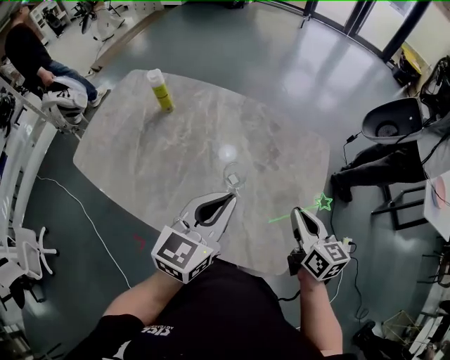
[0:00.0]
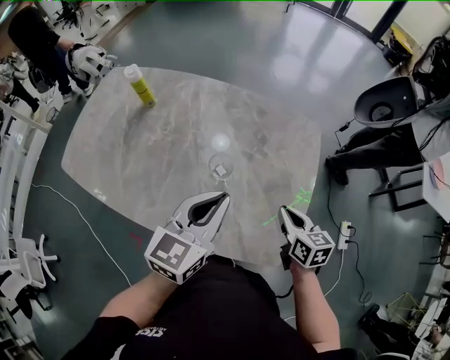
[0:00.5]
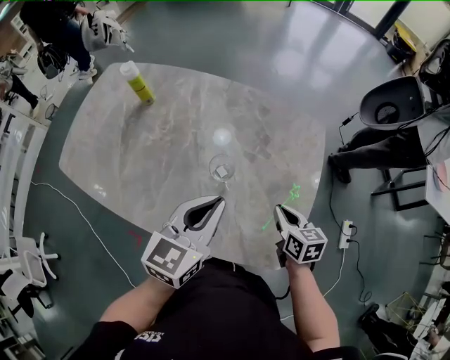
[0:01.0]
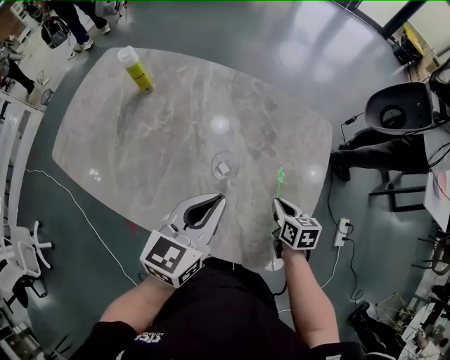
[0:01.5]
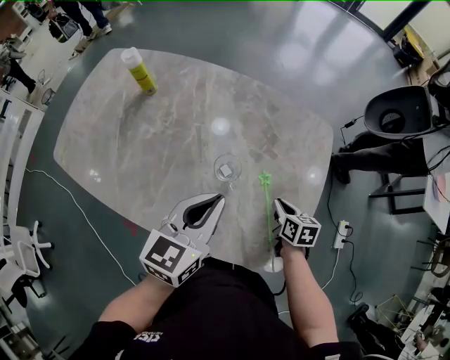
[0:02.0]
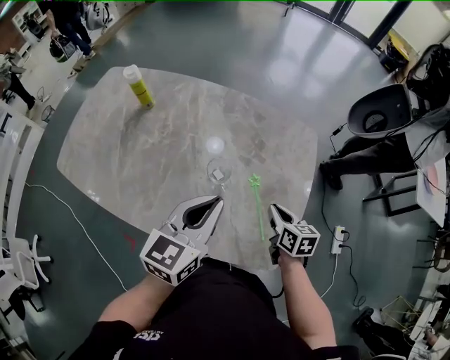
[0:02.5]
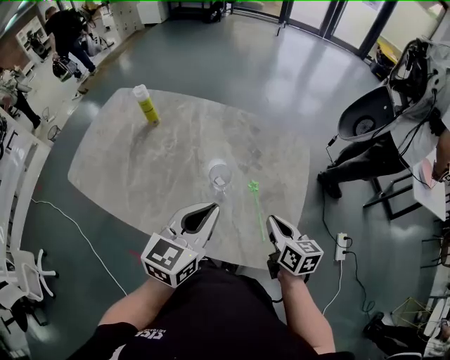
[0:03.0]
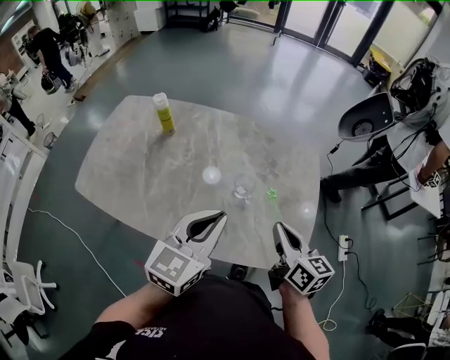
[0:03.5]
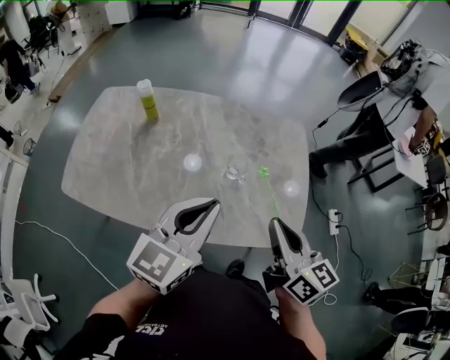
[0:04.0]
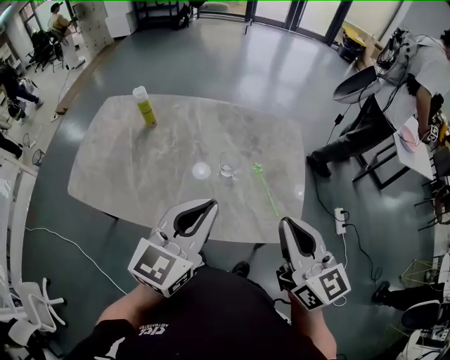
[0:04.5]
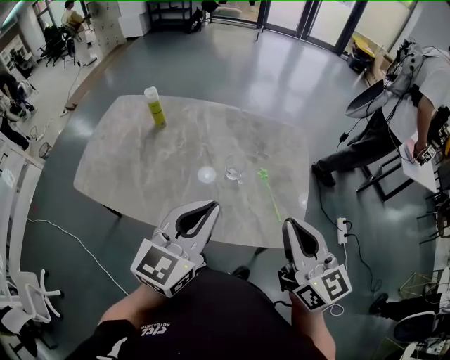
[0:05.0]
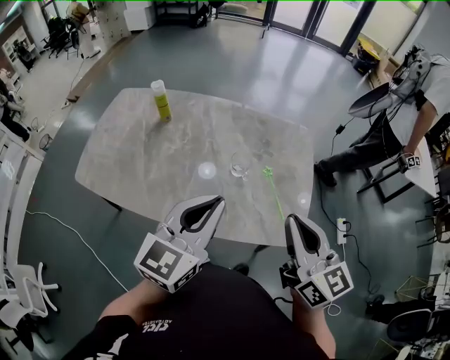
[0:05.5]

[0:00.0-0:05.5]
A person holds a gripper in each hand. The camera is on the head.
0:00.0 to 0:02.0: The left gripper is displaced downward by about 5 cm. Meanwhile the right gripper travels downward by roughly 20 cm, and rotates some 30 degrees.
0:02.0 to 0:03.5: The right gripper travels upward and to the left by roughly 25 cm, and tilts its fingers about 30 degrees upward; the left gripper heads upward, backward and to the left, covering roughly 15 cm.
0:03.5 to 0:05.5: The left gripper shifts about 5 cm backward; the right gripper travels upward and backward by approximately 15 cm, and turns by roughly 20 degrees.

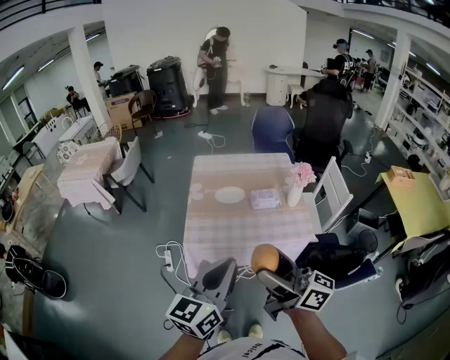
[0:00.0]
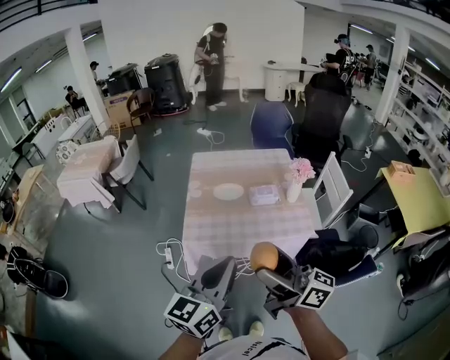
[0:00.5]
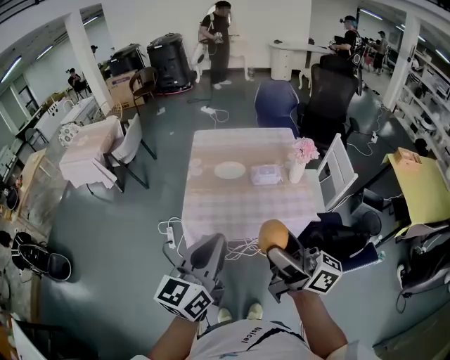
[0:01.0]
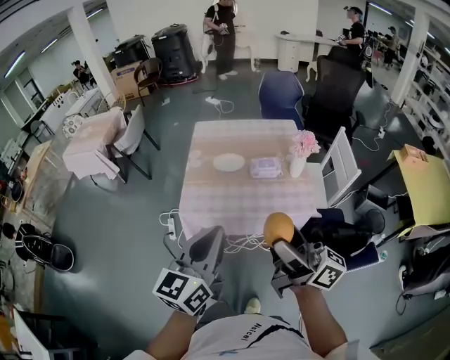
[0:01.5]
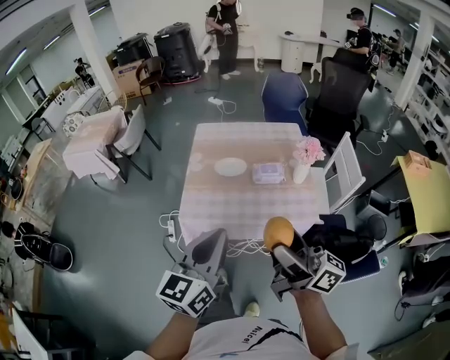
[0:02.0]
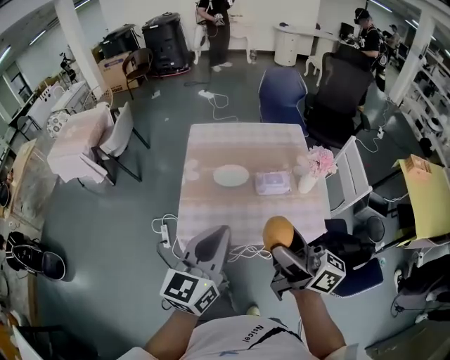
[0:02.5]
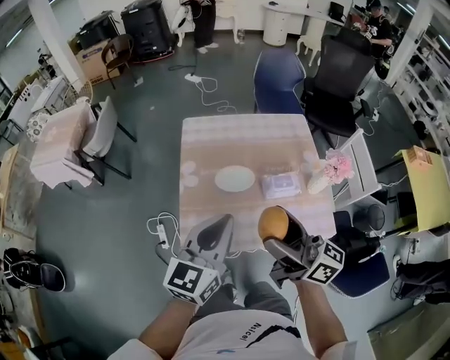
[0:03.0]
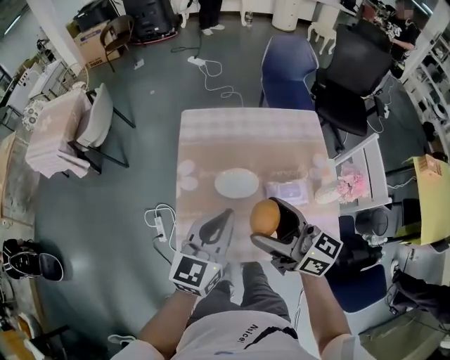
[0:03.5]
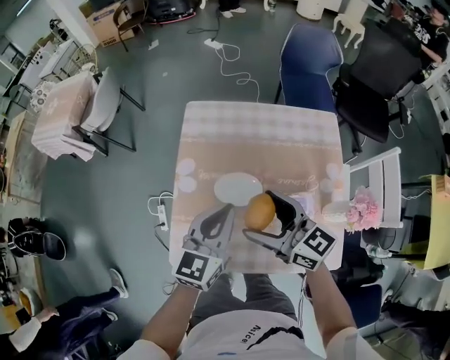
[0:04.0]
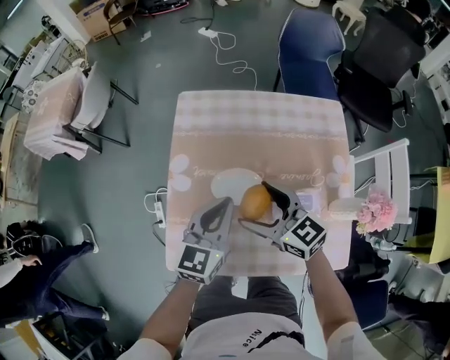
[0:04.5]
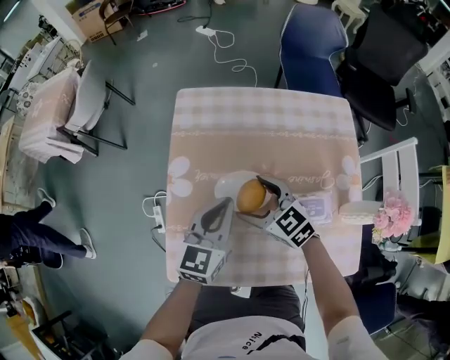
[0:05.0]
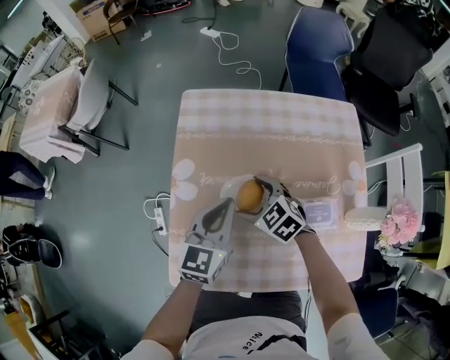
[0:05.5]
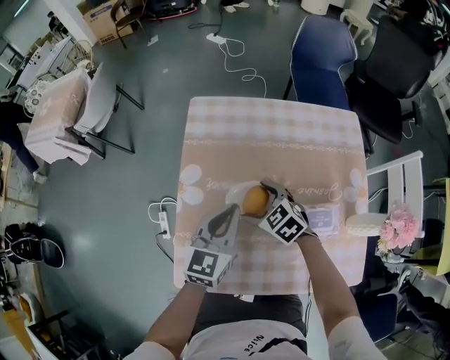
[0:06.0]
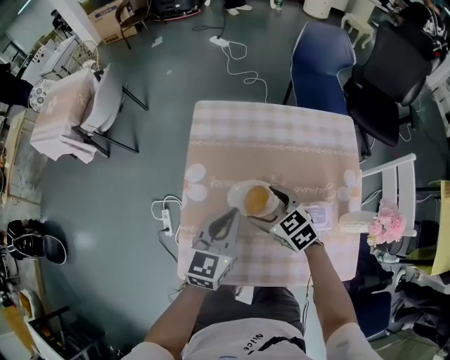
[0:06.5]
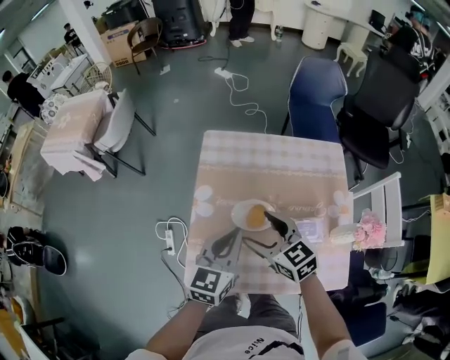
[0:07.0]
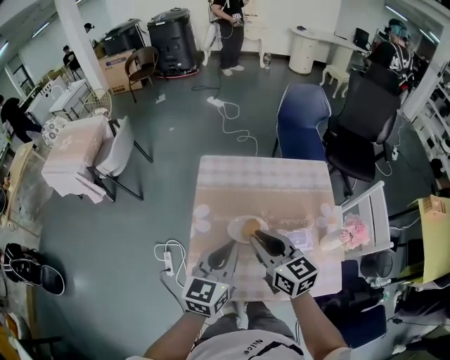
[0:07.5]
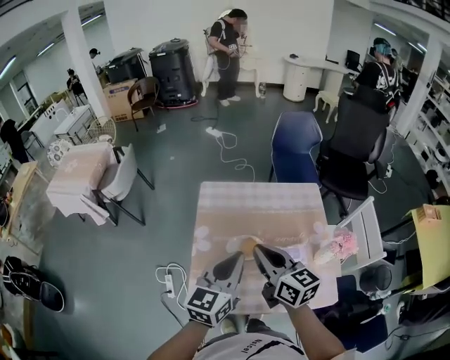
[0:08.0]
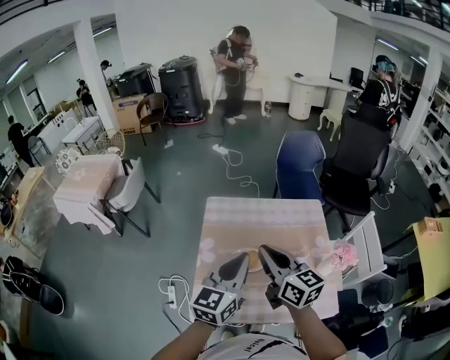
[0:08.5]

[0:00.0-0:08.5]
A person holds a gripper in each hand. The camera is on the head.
0:00.0 to 0:02.0: The right gripper is displaced to the right by some 10 cm; the left gripper moves roughly 5 cm.
0:02.0 to 0:04.0: The grippers both shift forward and downward by roughly 40 cm. The right gripper tilts its fingers roughly 30 degrees downward.
0:04.0 to 0:06.5: The right gripper moves downward, some 15 cm, and tilts its fingers approximately 30 degrees downward; the left gripper heads downward, covering about 10 cm.
0:06.5 to 0:08.5: The two grippers go roughly 25 cm upward. The right gripper angles its fingers upward, by roughly 40 degrees, and closes its fingers.

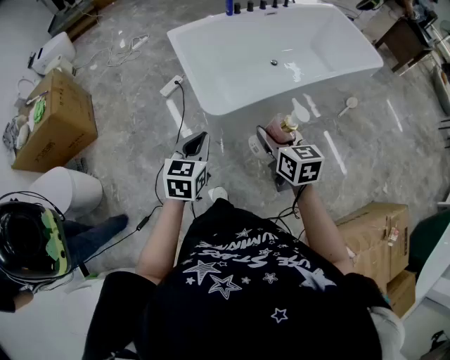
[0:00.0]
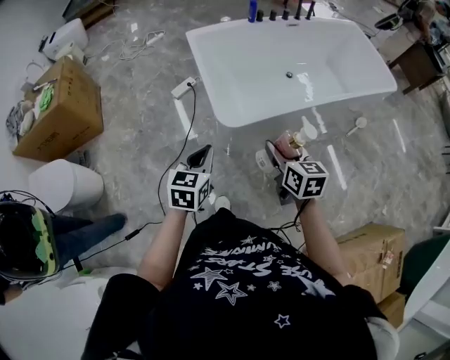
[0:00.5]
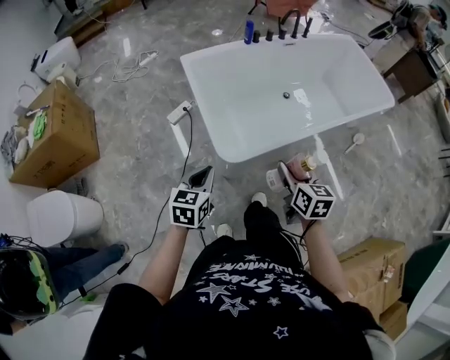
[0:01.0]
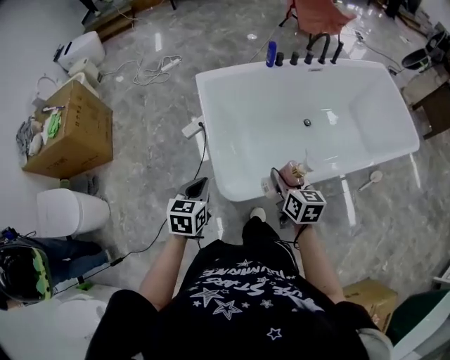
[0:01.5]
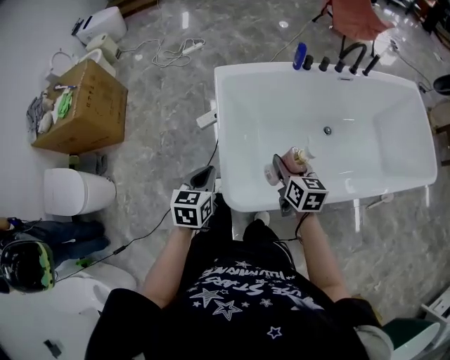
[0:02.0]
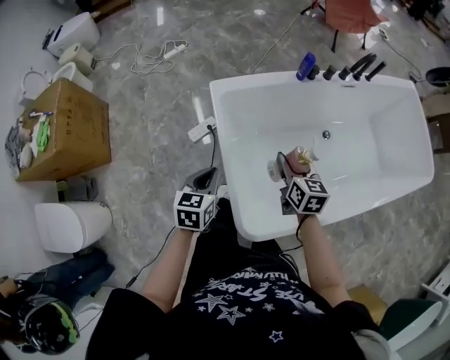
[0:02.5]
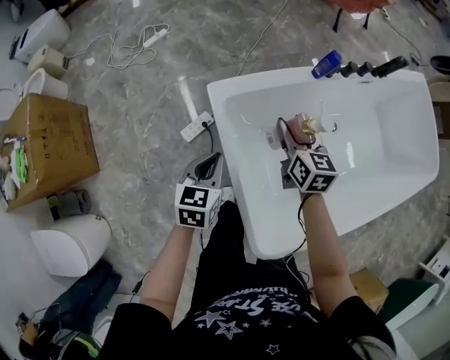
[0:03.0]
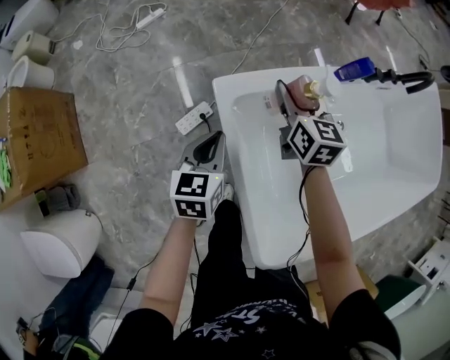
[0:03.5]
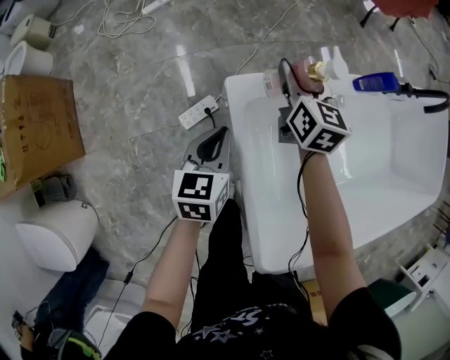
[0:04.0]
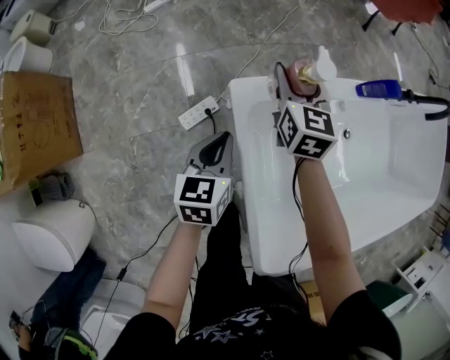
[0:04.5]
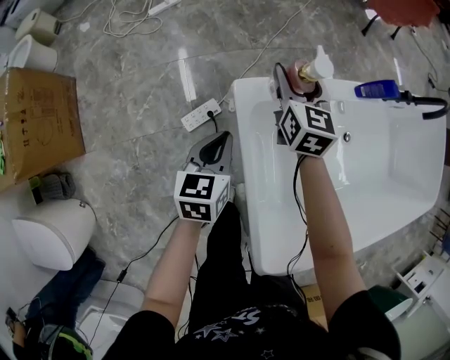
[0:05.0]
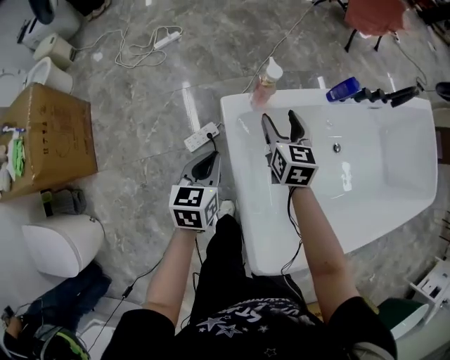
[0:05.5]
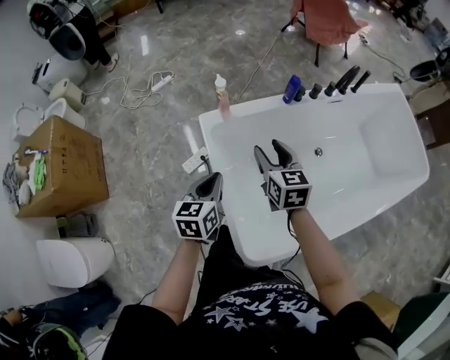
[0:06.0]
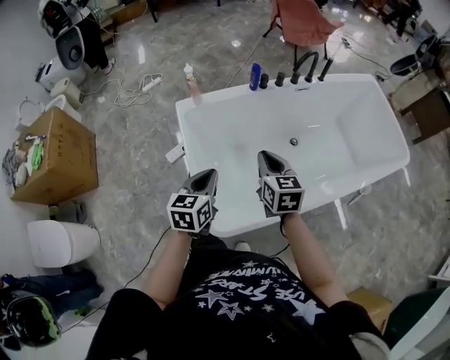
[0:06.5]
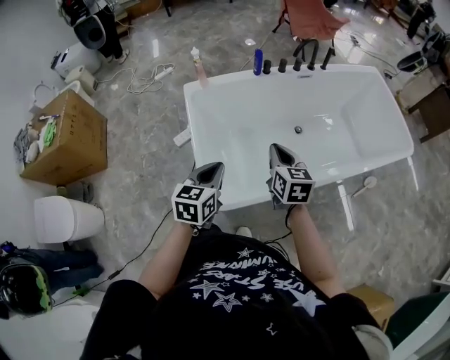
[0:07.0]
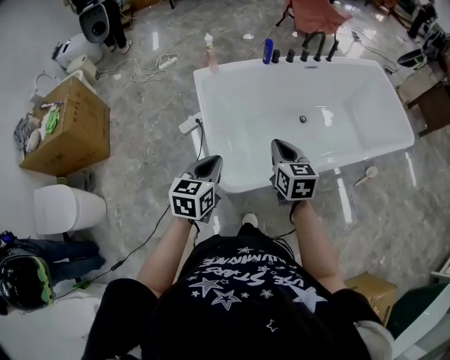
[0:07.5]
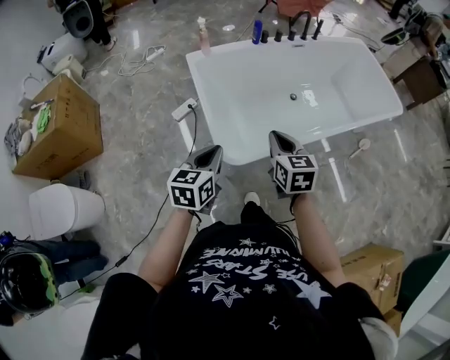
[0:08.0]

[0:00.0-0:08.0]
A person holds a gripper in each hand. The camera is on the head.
0:00.0 to 0:02.0: Both grippers travel together forward, some 40 cm. The left gripper swivels approximately 20 degrees.
0:02.0 to 0:04.0: Both grippers are carried forward and to the left, approximately 50 cm. The left gripper travels downward by about 20 cm.
0:04.0 to 0:06.0: The right gripper travels backward, upward and to the right by roughly 35 cm. Meanwhile the left gripper heads upward, backward and to the right, covering some 30 cm.
0:06.0 to 0:08.0: Both grippers are carried backward, about 40 cm. The right gripper closes its fingers.

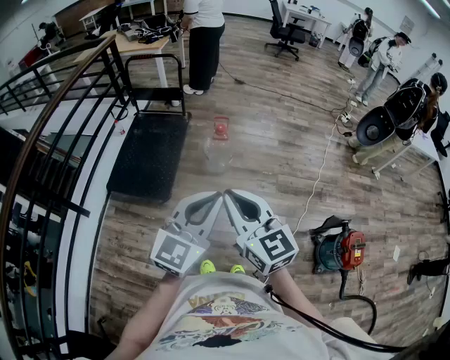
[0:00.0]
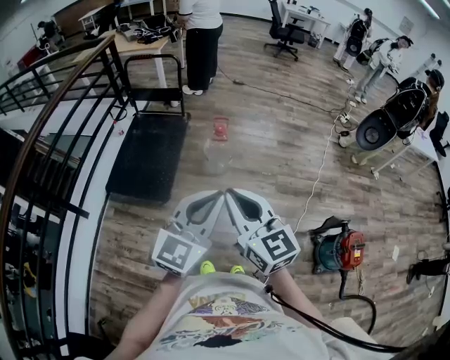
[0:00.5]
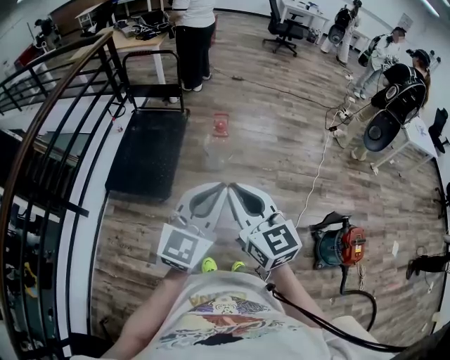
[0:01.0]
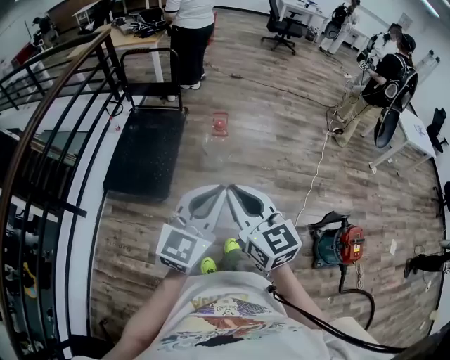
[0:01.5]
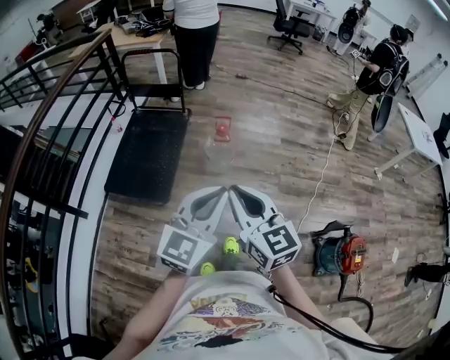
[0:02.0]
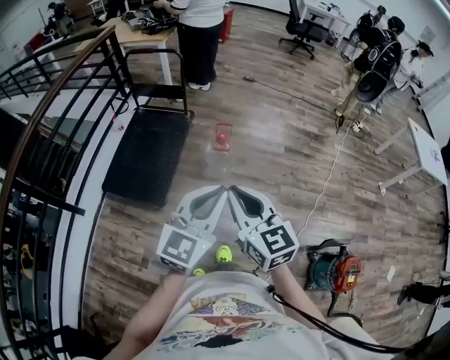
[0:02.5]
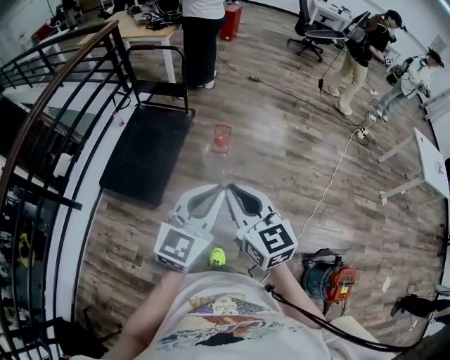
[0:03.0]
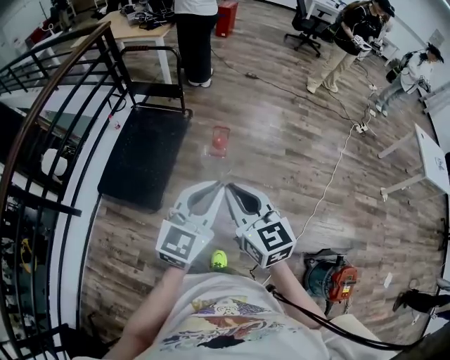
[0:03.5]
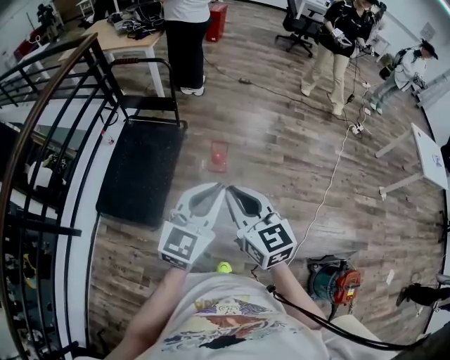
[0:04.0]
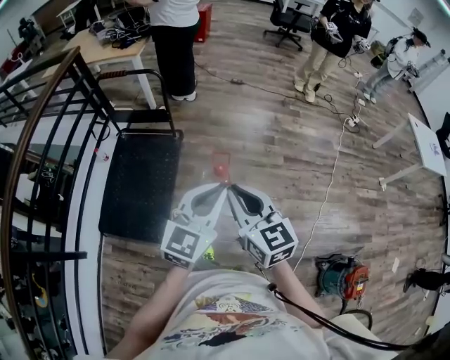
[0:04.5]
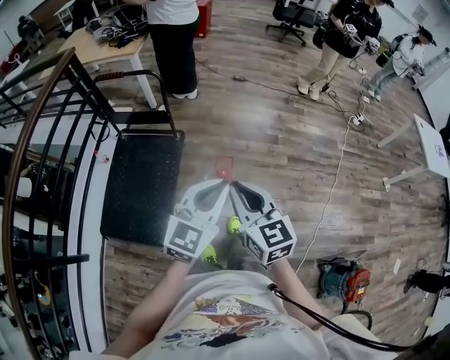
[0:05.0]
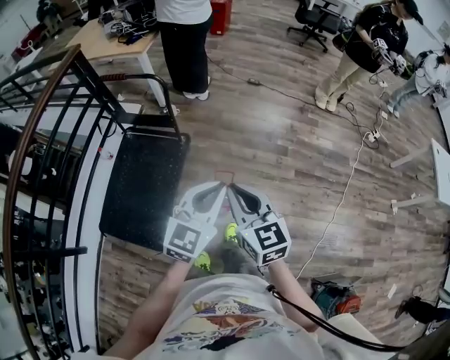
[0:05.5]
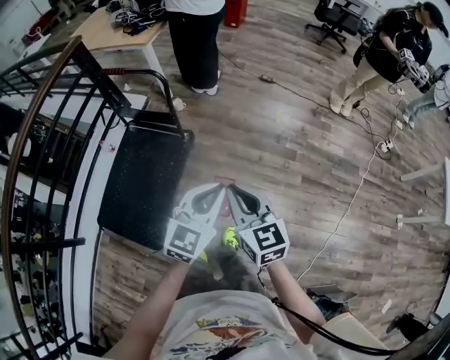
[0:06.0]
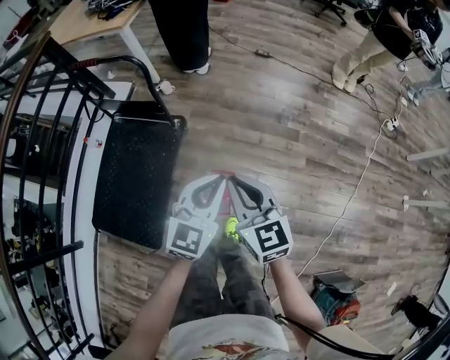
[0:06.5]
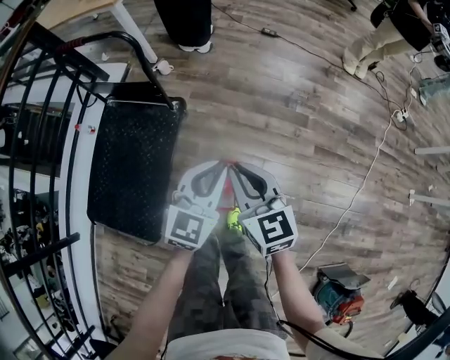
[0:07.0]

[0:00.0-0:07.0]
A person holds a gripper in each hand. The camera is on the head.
0:00.0 to 0:02.0: Both grippers travel together forward, about 10 cm.
0:02.0 to 0:03.5: Both grippers move forward, about 20 cm.
0:03.5 to 0:05.0: Both grippers move forward, roughly 25 cm.
0:05.0 to 0:07.0: The grippers both shift forward and downward by some 40 cm.
